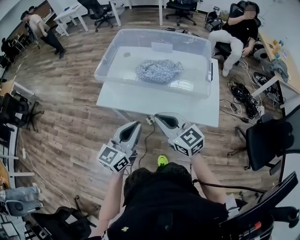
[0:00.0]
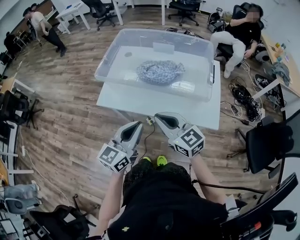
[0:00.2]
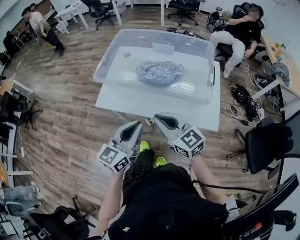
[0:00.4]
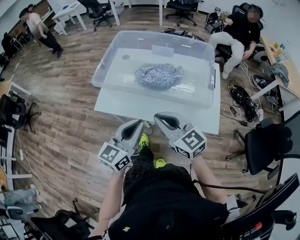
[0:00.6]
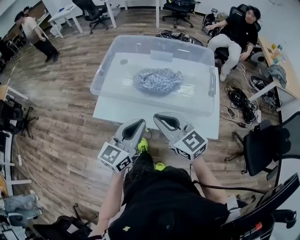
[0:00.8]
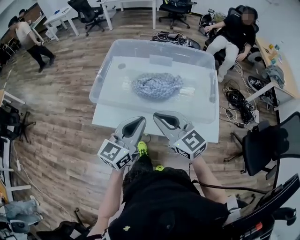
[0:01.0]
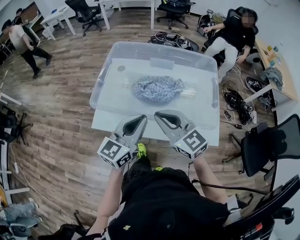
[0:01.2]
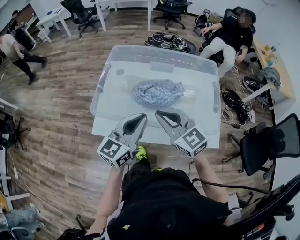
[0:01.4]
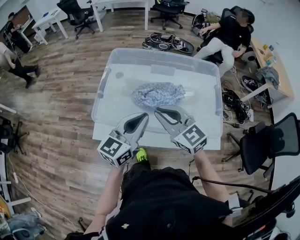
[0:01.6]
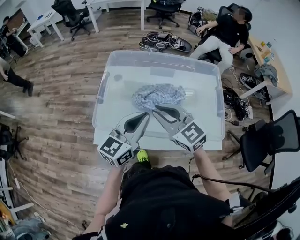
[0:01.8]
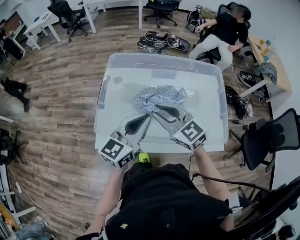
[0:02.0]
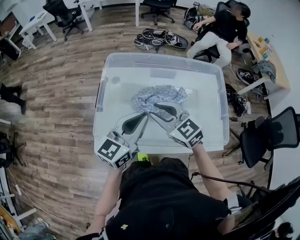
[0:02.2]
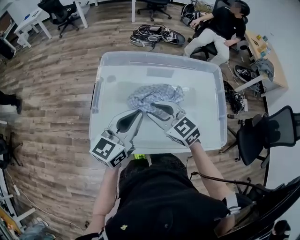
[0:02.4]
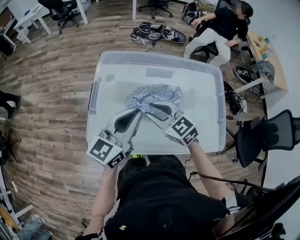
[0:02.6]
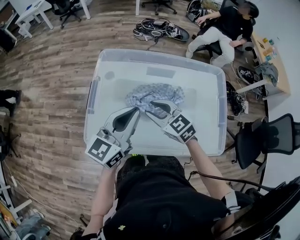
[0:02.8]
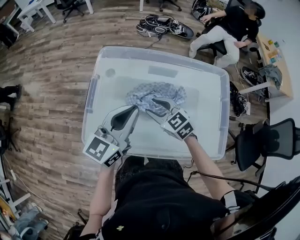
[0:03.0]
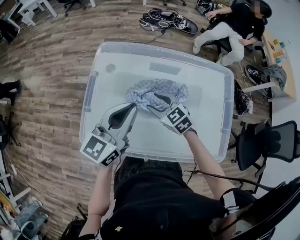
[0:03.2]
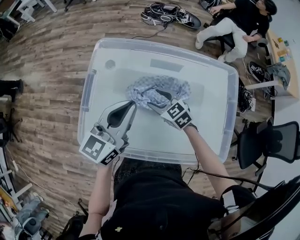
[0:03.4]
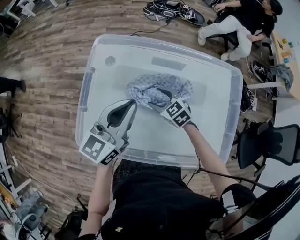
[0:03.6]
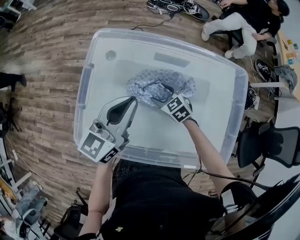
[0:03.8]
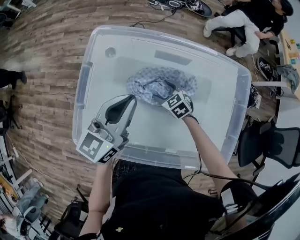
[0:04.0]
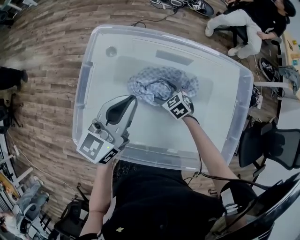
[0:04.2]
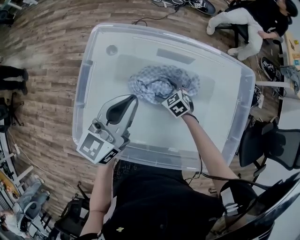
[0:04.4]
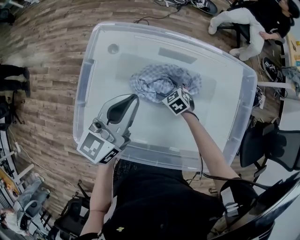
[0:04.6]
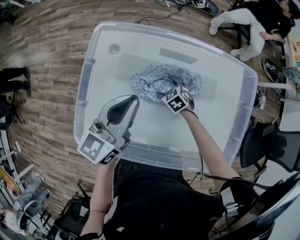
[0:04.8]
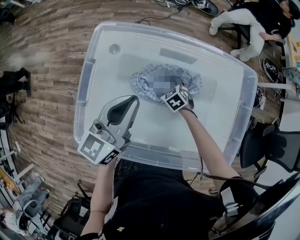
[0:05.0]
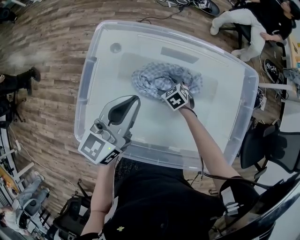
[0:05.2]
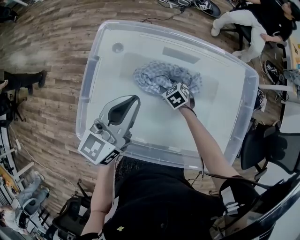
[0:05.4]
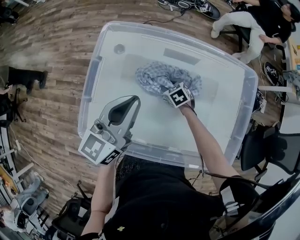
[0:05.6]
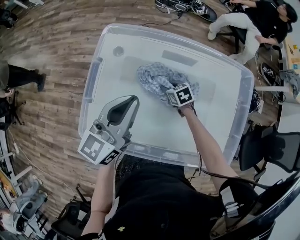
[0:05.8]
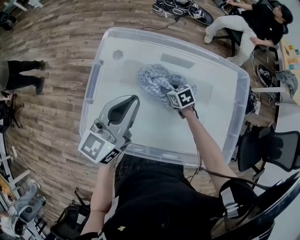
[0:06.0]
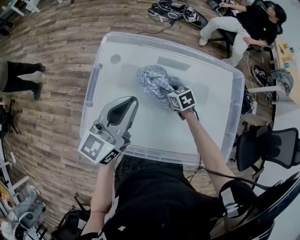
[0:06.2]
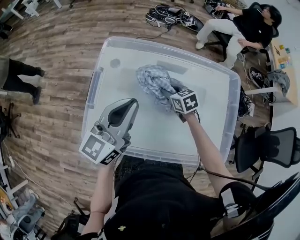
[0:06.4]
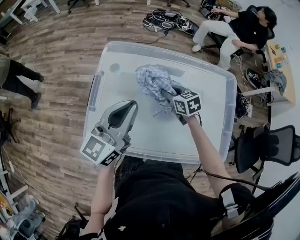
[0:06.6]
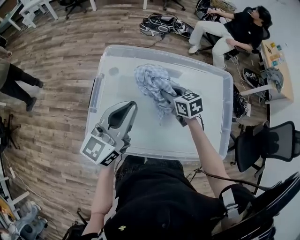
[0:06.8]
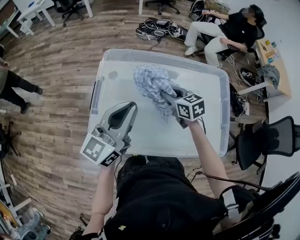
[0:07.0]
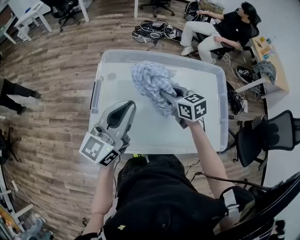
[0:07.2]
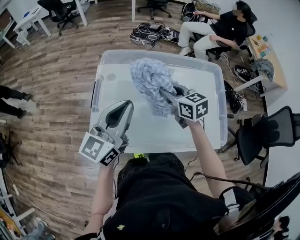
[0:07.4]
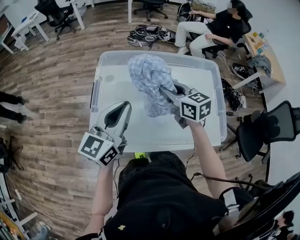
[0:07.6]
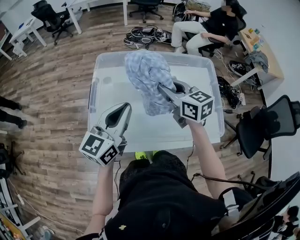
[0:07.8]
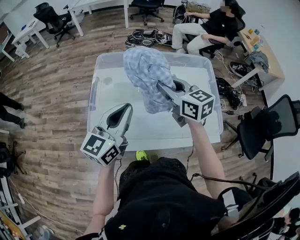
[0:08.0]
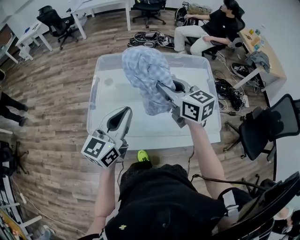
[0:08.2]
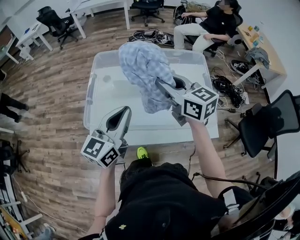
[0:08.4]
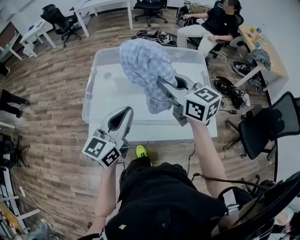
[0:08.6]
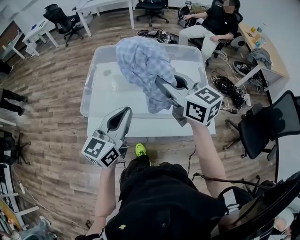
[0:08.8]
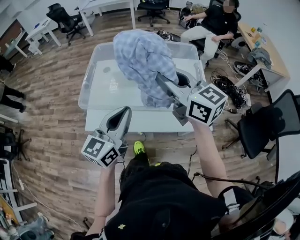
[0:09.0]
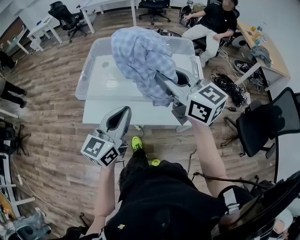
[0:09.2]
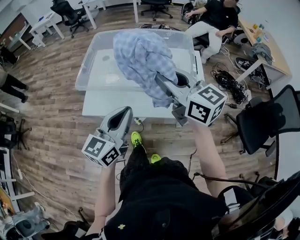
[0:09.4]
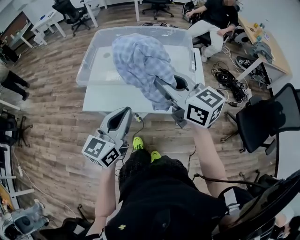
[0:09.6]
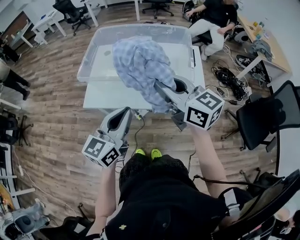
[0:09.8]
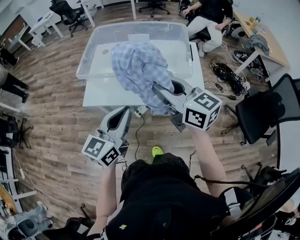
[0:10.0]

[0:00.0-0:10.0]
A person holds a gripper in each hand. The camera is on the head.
0:00.0 to 0:01.4: The two grippers go about 20 cm forward.
0:01.4 to 0:02.8: The right gripper travels forward and downward by some 20 cm, and opens up, while the left gripper travels forward by roughly 15 cm.
0:02.8 to 0:04.2: The left gripper heads forward and downward, covering approximately 10 cm. Meanwhile the right gripper travels downward by about 25 cm, swivels roughly 20 degrees, and opens.
0:04.2 to 0:05.8: The right gripper closes.
0:05.8 to 0:07.2: The right gripper moves upward, about 25 cm, and changes its angle by roughly 30 degrees; the left gripper heads upward, covering some 5 cm.
0:07.2 to 0:08.6: The left gripper is displaced backward and to the right by about 15 cm, while the right gripper moves upward and backward, some 20 cm, and changes its angle by some 20 degrees.
0:08.6 to 0:10.0: The grippers both shift backward by approximately 25 cm.

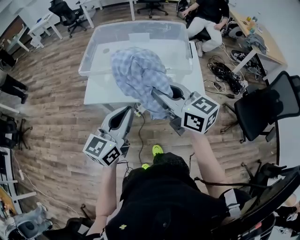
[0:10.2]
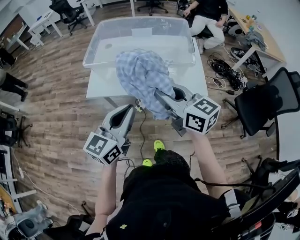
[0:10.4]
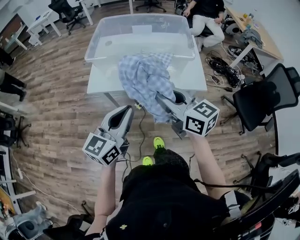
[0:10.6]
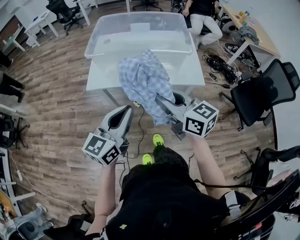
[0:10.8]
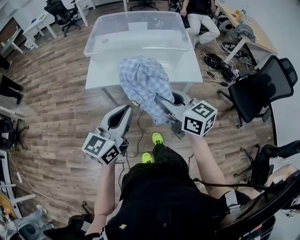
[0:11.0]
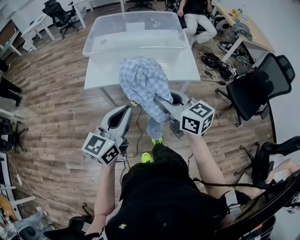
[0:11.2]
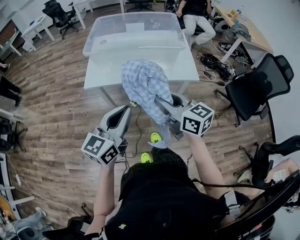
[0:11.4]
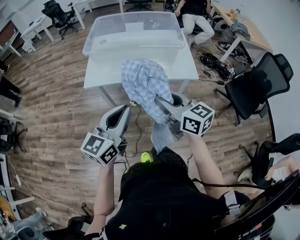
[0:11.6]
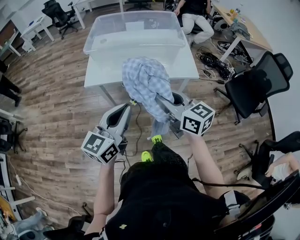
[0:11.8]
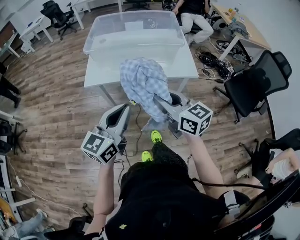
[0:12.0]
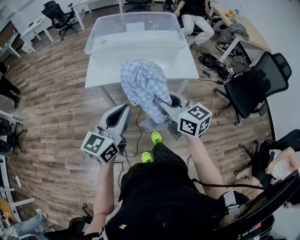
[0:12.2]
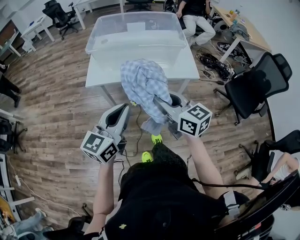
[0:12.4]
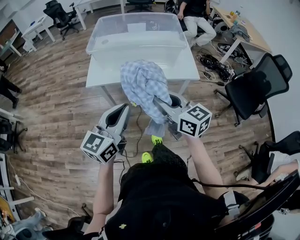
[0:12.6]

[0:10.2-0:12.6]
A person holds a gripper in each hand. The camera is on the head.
0:10.2 to 0:11.4: The two grippers go some 15 cm backward.
0:11.4 to 0:12.6: The grippers make only small movements.

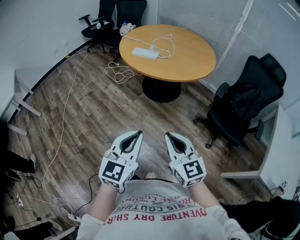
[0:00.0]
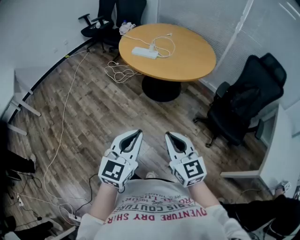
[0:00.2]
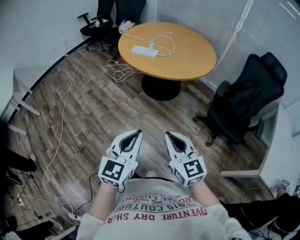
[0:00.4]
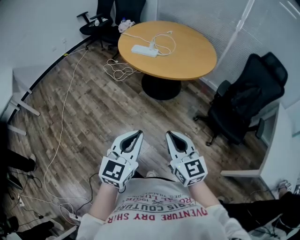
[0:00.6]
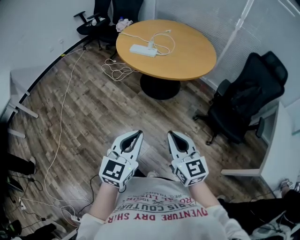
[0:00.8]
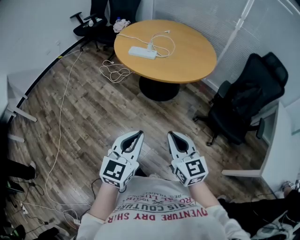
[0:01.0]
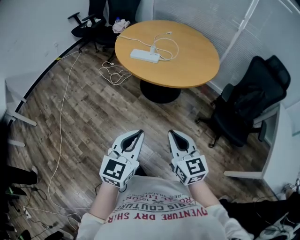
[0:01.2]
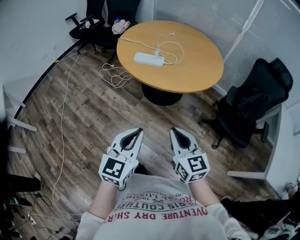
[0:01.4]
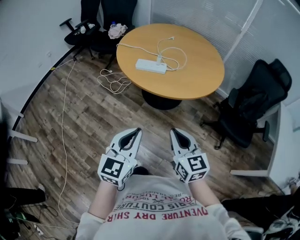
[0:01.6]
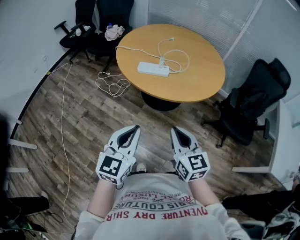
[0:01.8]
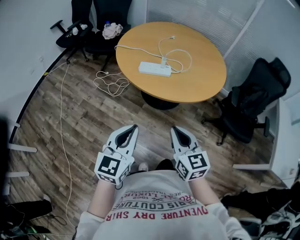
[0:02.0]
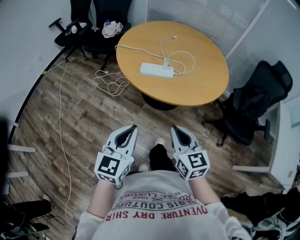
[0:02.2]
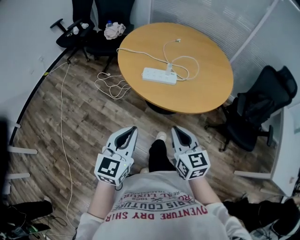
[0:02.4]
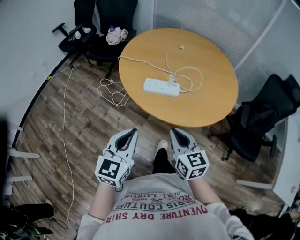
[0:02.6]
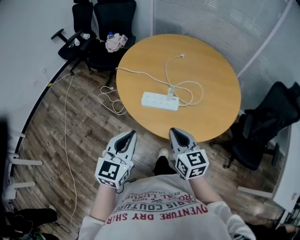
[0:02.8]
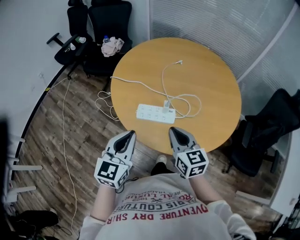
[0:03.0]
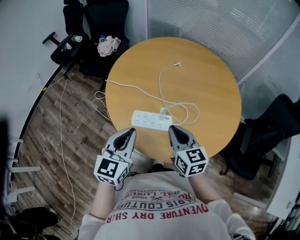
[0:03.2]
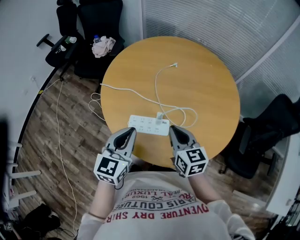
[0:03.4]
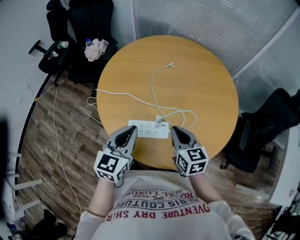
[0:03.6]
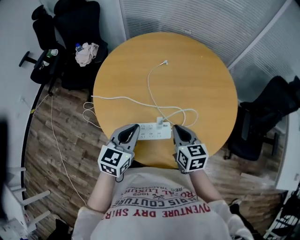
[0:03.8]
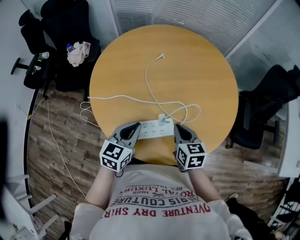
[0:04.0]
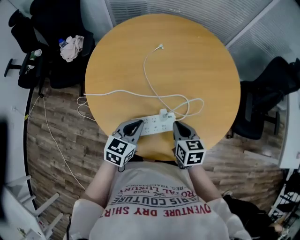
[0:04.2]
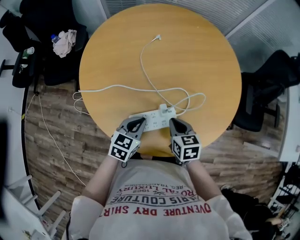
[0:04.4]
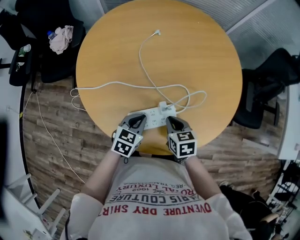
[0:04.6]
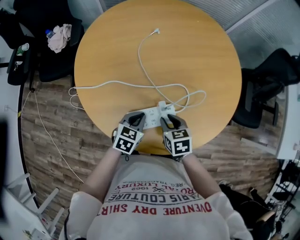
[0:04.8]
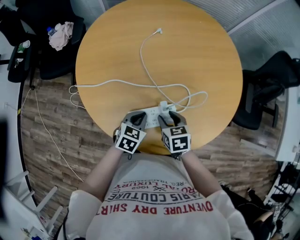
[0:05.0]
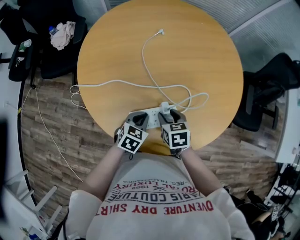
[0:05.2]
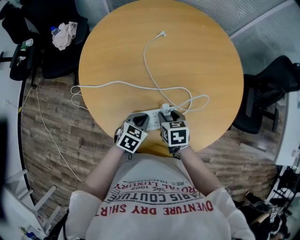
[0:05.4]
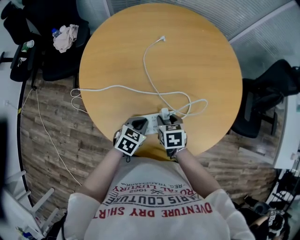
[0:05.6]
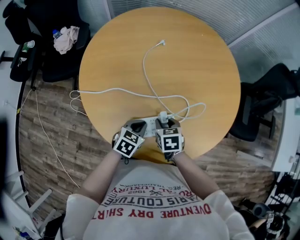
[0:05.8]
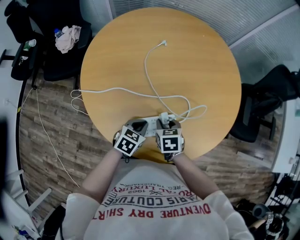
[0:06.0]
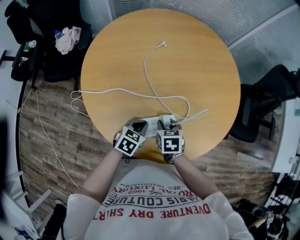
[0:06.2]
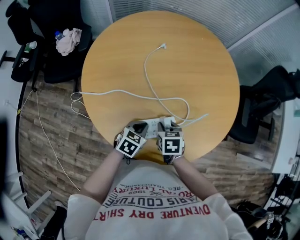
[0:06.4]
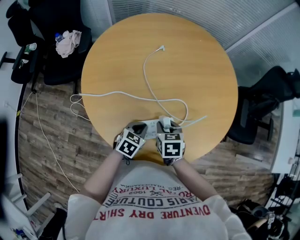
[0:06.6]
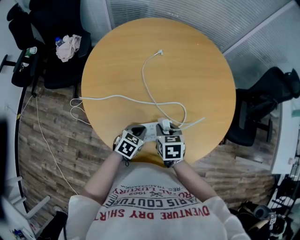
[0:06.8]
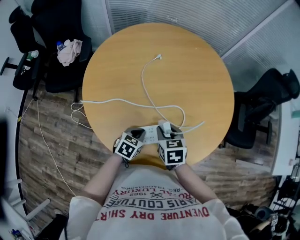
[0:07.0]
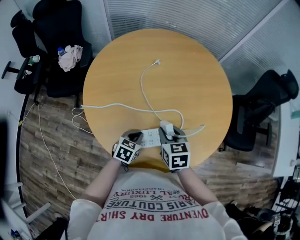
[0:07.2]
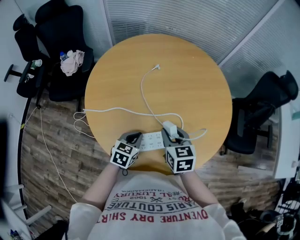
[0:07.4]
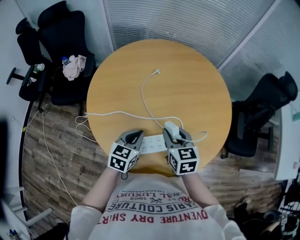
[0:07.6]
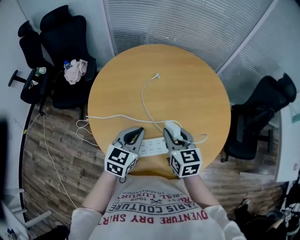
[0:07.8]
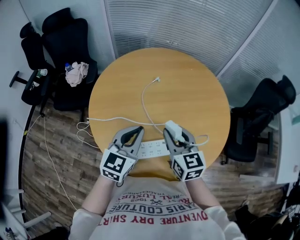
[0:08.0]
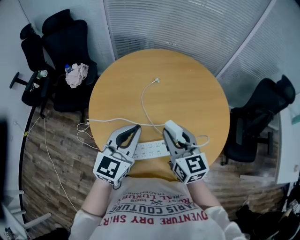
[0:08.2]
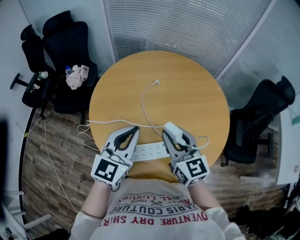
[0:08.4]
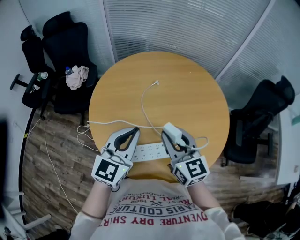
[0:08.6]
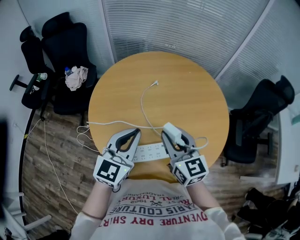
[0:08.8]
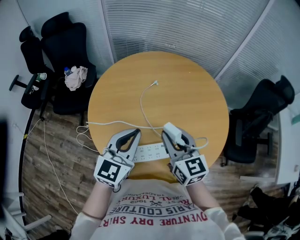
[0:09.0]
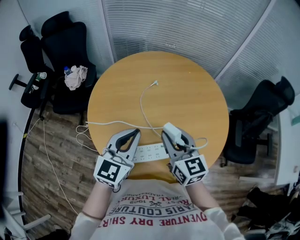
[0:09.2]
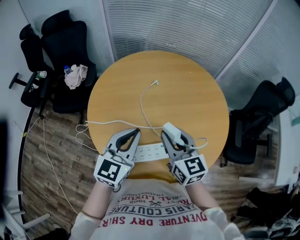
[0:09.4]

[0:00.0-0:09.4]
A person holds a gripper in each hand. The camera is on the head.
0:00.0 to 0:01.6: The two grippers go approximately 25 cm forward and to the left.
0:01.6 to 0:03.2: Both grippers are carried forward, roughly 40 cm.
0:03.2 to 0:04.8: The grippers both shift downward by roughly 20 cm. The left gripper angles its fingers downward, by approximately 30 degrees. Meanwhile the right gripper tilts its fingers some 30 degrees downward.
0:04.8 to 0:06.2: The grippers move only a little.
0:06.2 to 0:07.8: Both grippers travel together upward, some 20 cm. The right gripper tilts its fingers approximately 30 degrees upward. The left gripper swivels about 30 degrees.
0:07.8 to 0:09.4: The two grippers go roughly 10 cm upward.

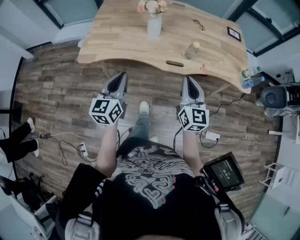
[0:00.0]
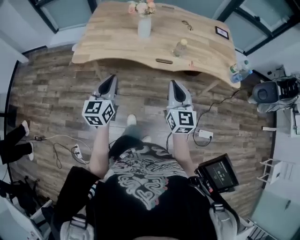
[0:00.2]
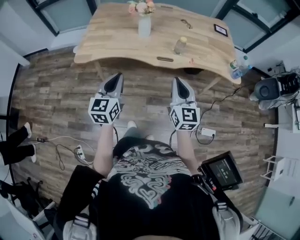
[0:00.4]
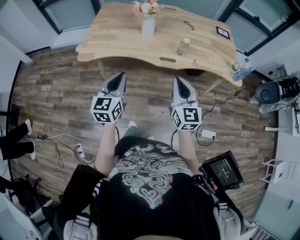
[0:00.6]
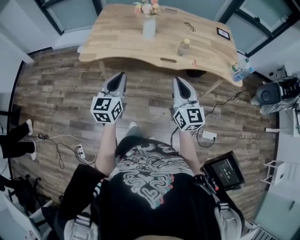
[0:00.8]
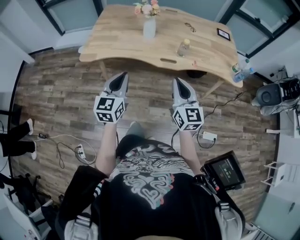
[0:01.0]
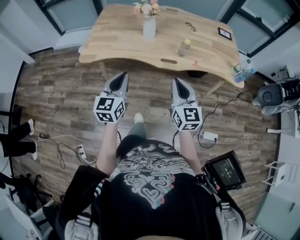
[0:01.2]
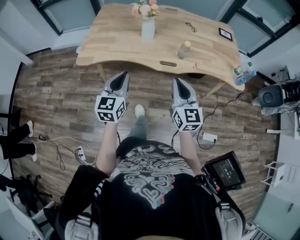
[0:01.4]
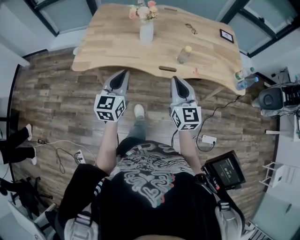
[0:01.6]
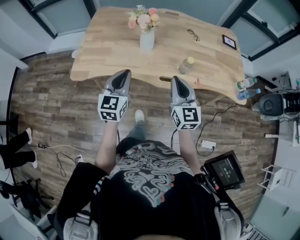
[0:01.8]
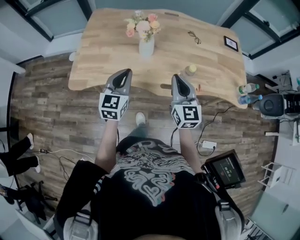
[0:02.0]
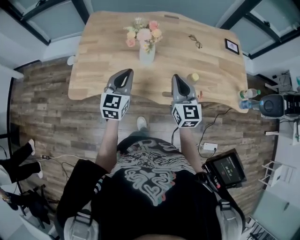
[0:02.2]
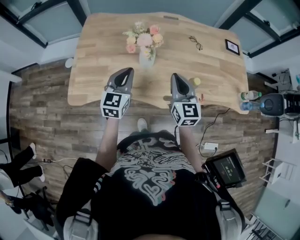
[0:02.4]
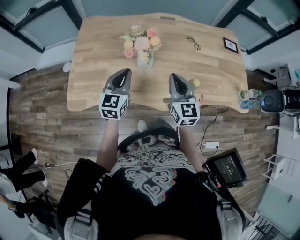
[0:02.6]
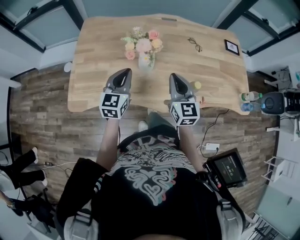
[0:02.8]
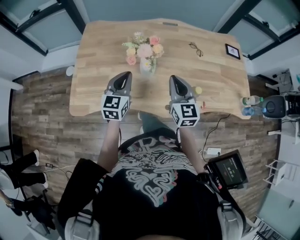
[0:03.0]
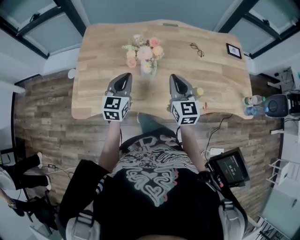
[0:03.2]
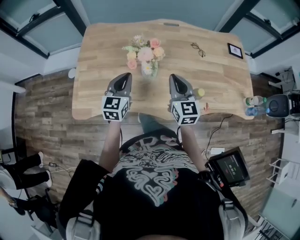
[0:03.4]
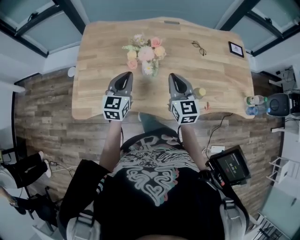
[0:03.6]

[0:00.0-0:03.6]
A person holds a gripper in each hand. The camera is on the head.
0:00.0 to 0:01.8: The two grippers go roughly 10 cm forward.
0:01.8 to 0:03.6: The grippers both shift forward by about 25 cm.
